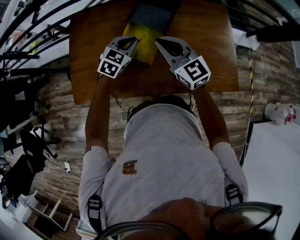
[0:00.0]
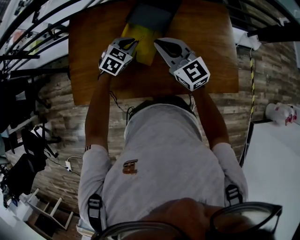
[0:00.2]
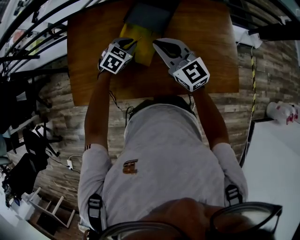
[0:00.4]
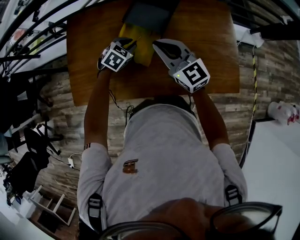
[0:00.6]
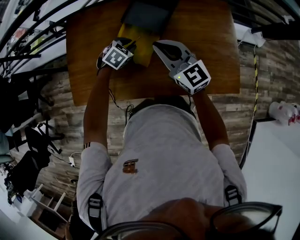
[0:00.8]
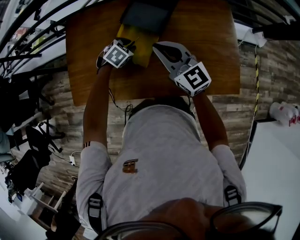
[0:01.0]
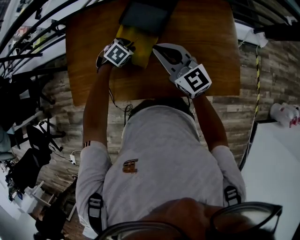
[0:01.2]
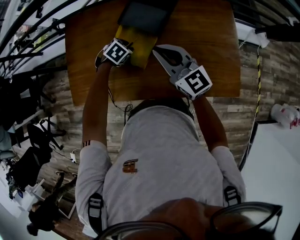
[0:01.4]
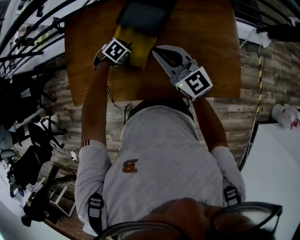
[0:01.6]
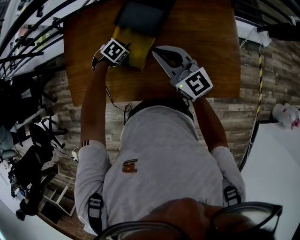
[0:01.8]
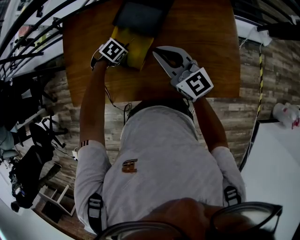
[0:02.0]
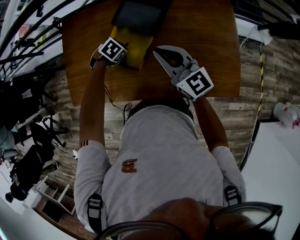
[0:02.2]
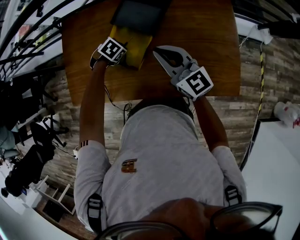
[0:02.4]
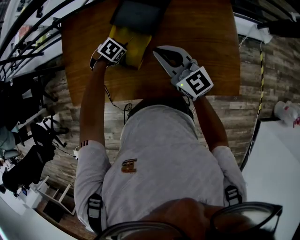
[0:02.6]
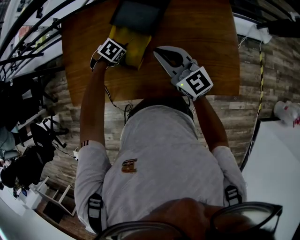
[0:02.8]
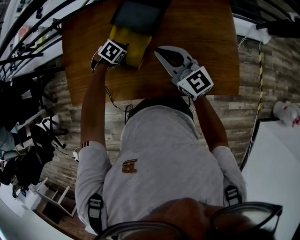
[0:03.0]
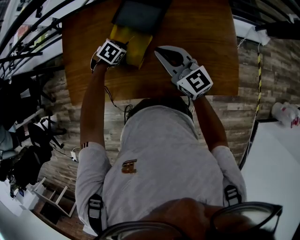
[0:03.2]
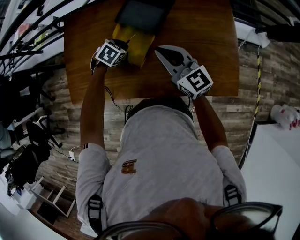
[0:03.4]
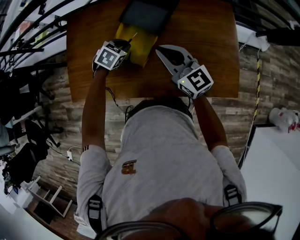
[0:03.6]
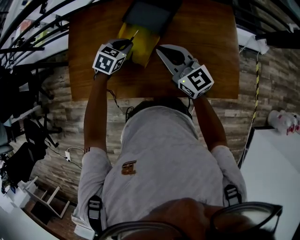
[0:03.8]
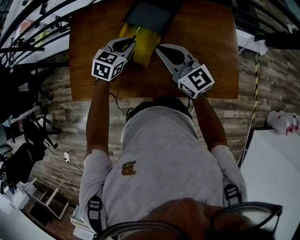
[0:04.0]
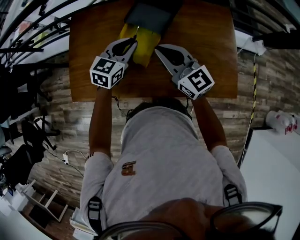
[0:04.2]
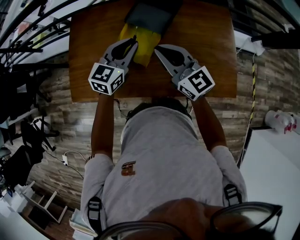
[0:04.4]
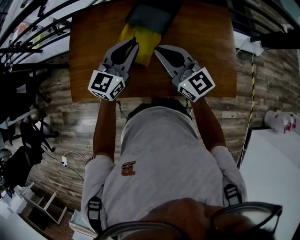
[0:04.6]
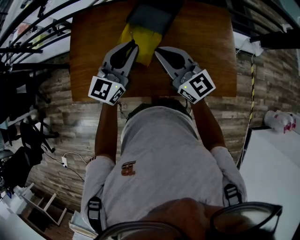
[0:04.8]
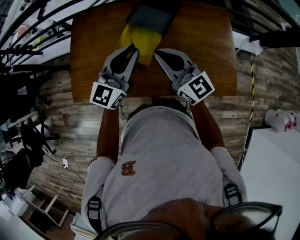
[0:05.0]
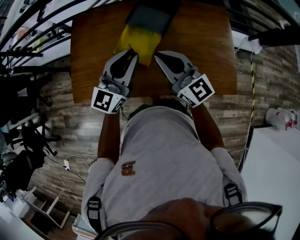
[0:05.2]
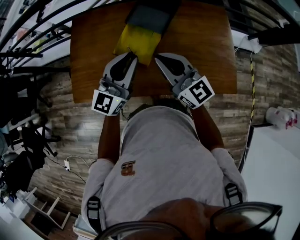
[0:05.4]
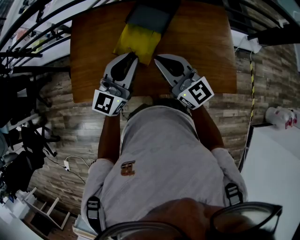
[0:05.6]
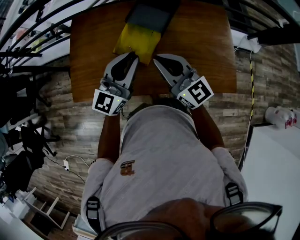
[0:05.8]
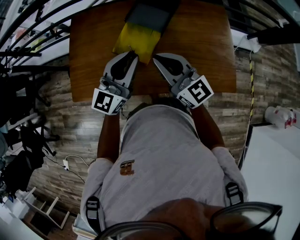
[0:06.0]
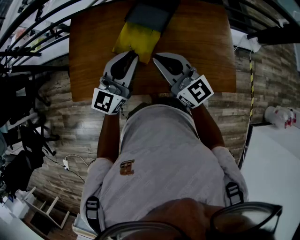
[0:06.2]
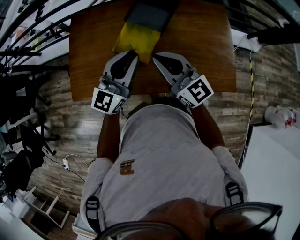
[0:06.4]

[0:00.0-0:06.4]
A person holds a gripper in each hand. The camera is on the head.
0:00.0 to 0:01.6: The right gripper ends up about 10 cm from where it was; the left gripper travels downward by roughly 15 cm, tilts its fingers about 40 degrees downward, and opens its fingers.
0:01.6 to 0:03.2: The grippers move only a little.
0:03.2 to 0:04.8: The right gripper heads to the left, upward and backward, covering some 15 cm; the left gripper shifts some 30 cm upward, and angles its fingers upward, by approximately 70 degrees.
0:04.8 to 0:06.4: The left gripper moves backward, some 5 cm.

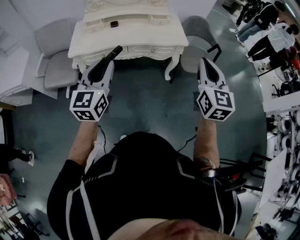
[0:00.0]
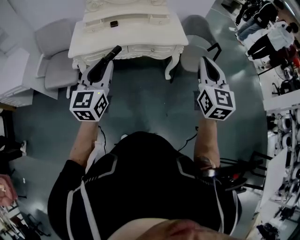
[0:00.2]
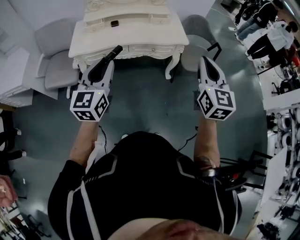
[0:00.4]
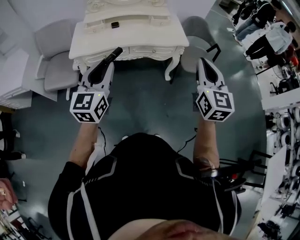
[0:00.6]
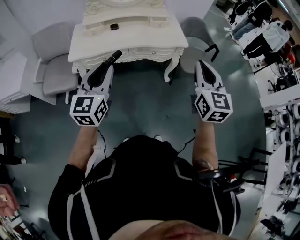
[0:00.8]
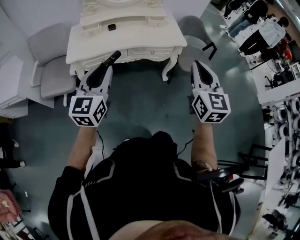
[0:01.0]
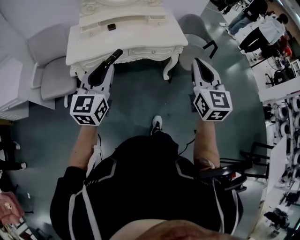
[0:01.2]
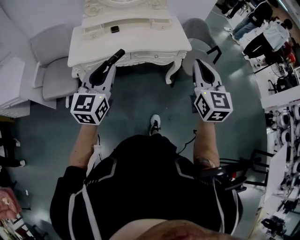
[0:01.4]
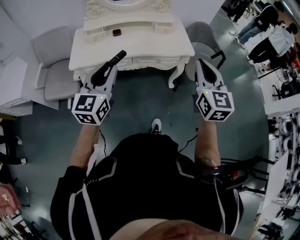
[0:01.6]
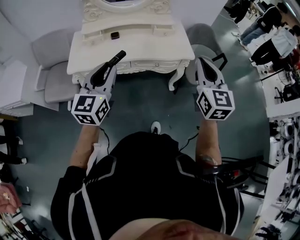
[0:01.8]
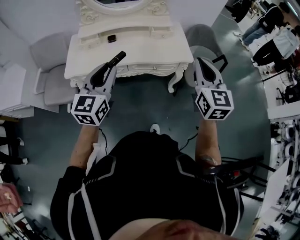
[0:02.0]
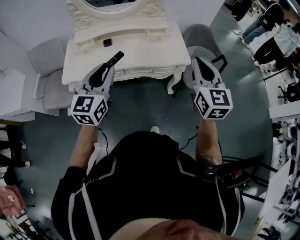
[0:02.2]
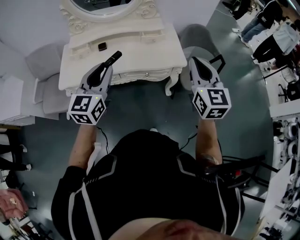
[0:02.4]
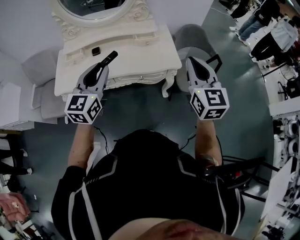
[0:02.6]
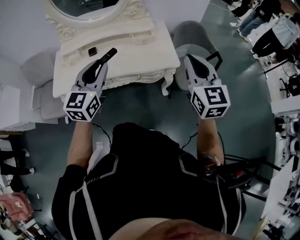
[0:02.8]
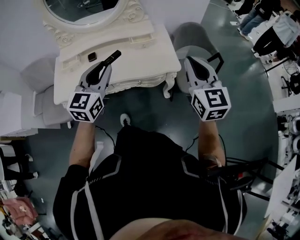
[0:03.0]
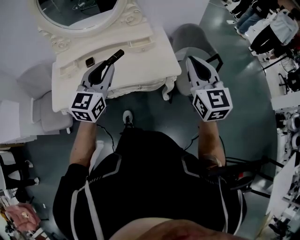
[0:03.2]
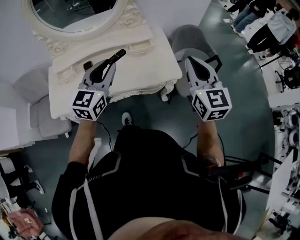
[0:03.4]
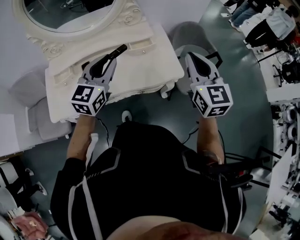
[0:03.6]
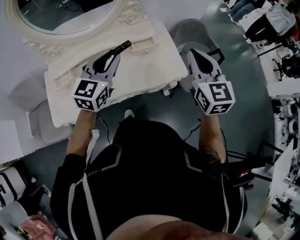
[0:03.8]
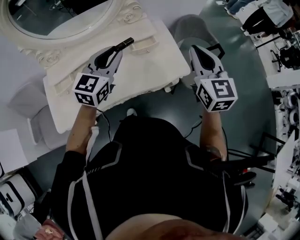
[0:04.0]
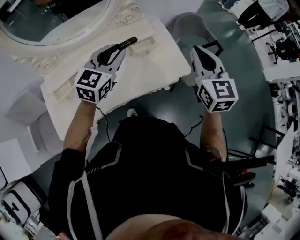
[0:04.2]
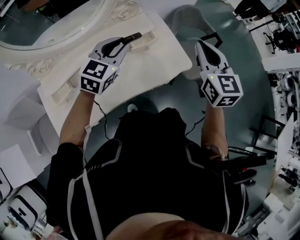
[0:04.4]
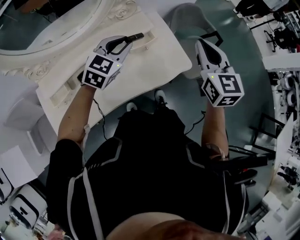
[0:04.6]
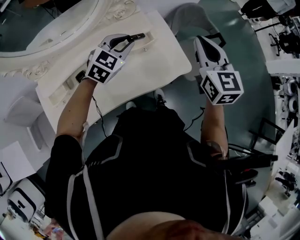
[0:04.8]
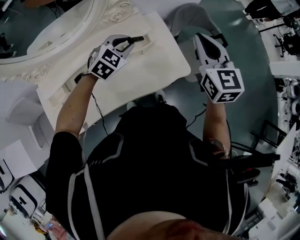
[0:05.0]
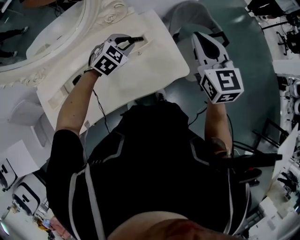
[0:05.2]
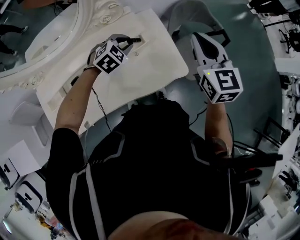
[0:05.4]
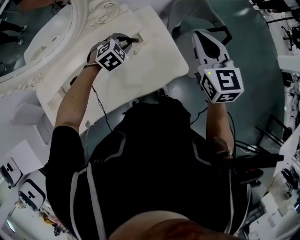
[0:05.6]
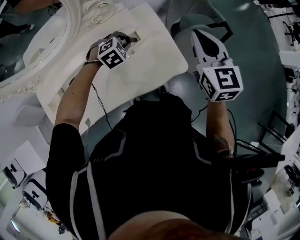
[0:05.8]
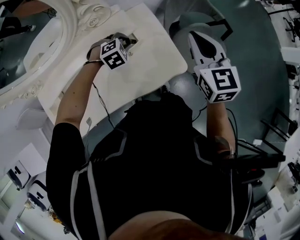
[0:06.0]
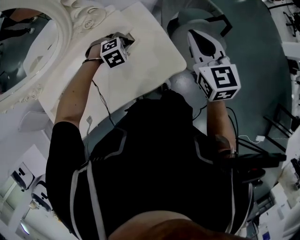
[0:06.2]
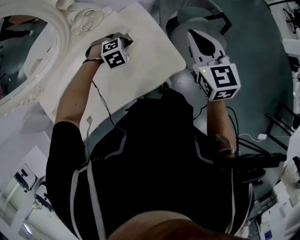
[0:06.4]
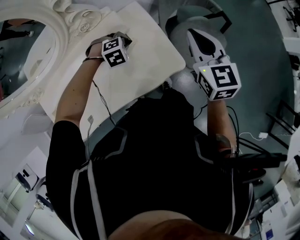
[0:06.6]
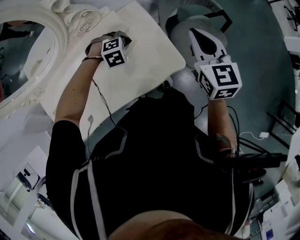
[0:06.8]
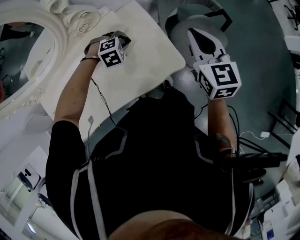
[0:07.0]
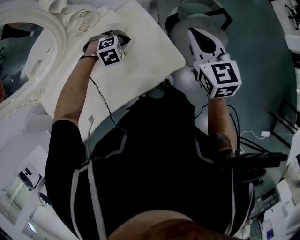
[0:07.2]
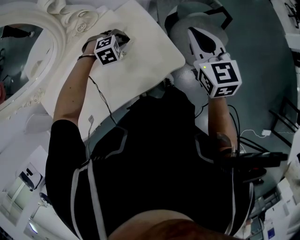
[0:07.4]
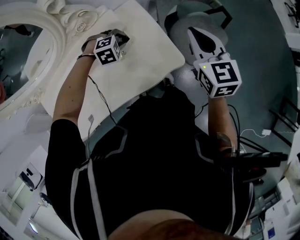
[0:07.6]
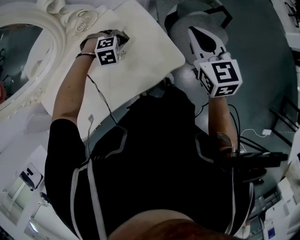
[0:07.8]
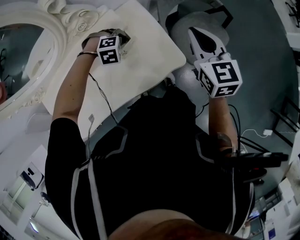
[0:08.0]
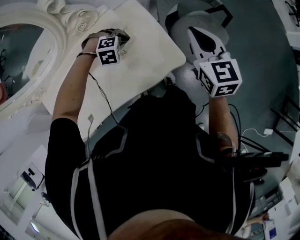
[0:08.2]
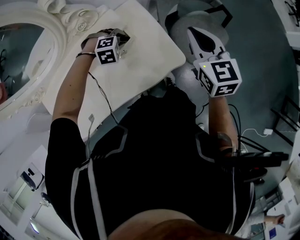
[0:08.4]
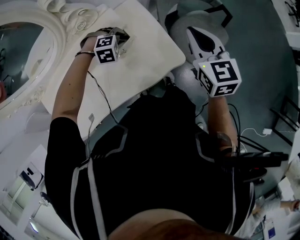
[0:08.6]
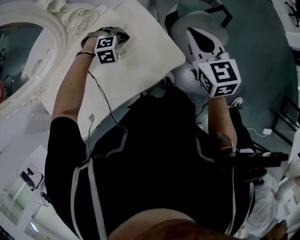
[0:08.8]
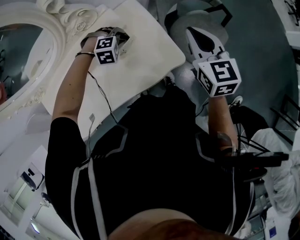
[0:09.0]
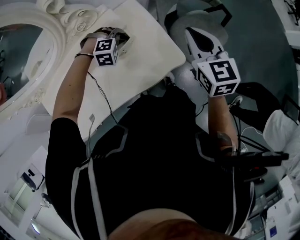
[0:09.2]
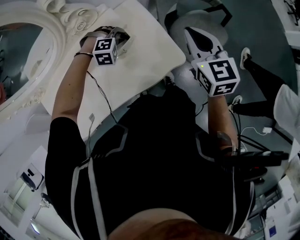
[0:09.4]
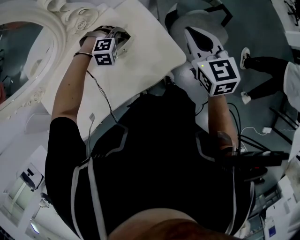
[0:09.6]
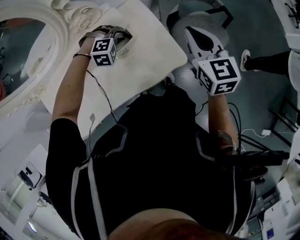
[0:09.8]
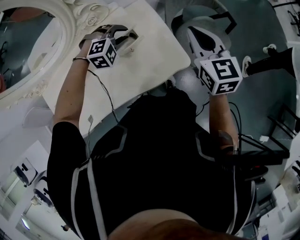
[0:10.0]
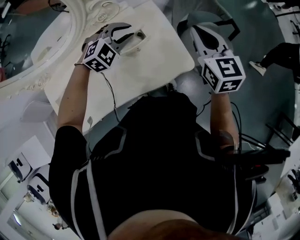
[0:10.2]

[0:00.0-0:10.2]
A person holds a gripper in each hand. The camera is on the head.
0:00.0 to 0:01.4: Both grippers travel together to the left, approximately 5 cm.
0:01.4 to 0:03.0: The grippers both shift forward and to the right by some 30 cm.
0:03.0 to 0:04.4: The left gripper goes some 25 cm forward, and rotates approximately 30 degrees. Meanwhile the right gripper moves forward and to the left, approximately 20 cm, and rotates approximately 20 degrees.
0:04.4 to 0:05.8: The right gripper shifts approximately 15 cm forward, downward and to the right. The left gripper heads downward and forward, covering some 25 cm, and points its fingers about 40 degrees further downward.
0:05.8 to 0:07.2: The left gripper turns by roughly 20 degrees; the right gripper ends up some 5 cm from where it was.
0:07.2 to 0:08.8: The grippers stay close to where they were, moving slightly.
0:08.8 to 0:10.2: The left gripper is displaced upward by roughly 15 cm, and tilts its fingers about 30 degrees upward. The right gripper moves about 5 cm.

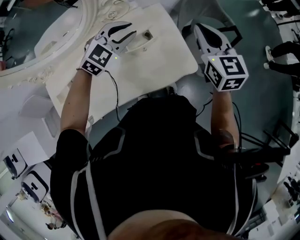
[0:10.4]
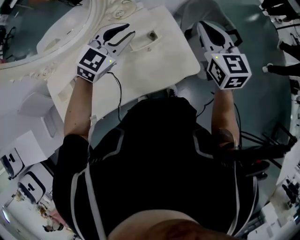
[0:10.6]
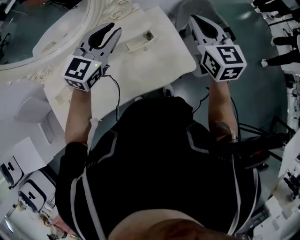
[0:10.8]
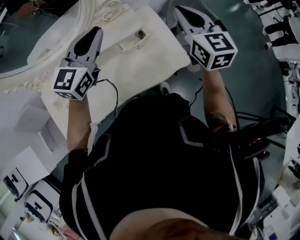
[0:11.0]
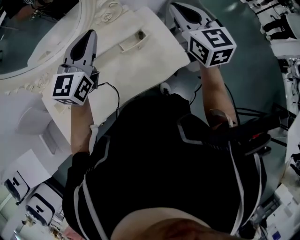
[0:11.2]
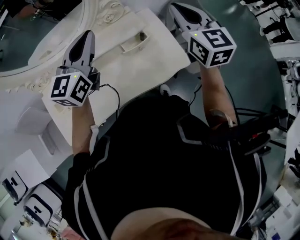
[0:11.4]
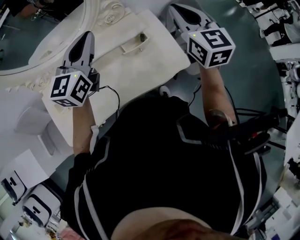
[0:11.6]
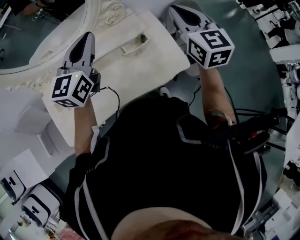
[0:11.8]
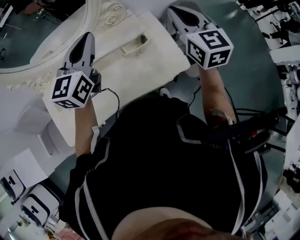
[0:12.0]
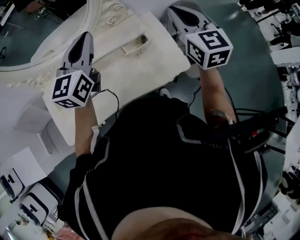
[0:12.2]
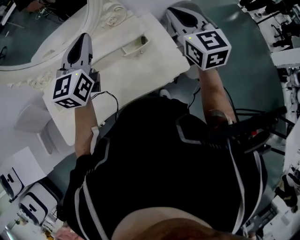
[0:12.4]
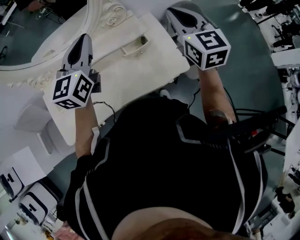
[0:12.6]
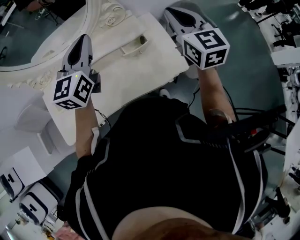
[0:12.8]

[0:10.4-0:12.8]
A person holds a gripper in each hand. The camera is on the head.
0:10.4 to 0:11.6: The left gripper goes approximately 20 cm upward, to the left and backward, changes its angle by about 50 degrees, and closes. Meanwhile the right gripper shifts about 10 cm upward and to the left.
0:11.6 to 0:12.8: There are only small adjustments of the grippers.

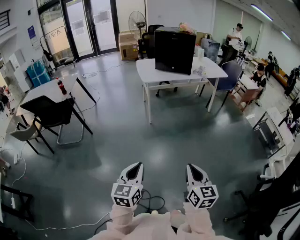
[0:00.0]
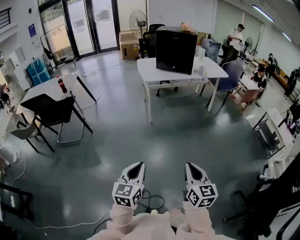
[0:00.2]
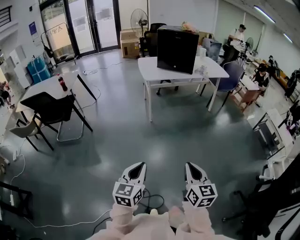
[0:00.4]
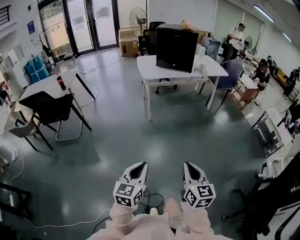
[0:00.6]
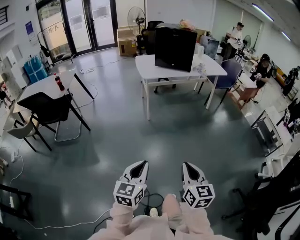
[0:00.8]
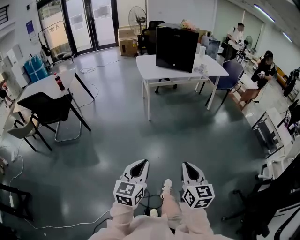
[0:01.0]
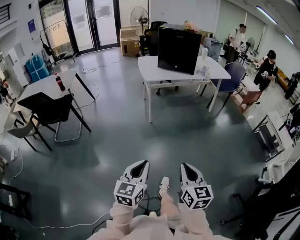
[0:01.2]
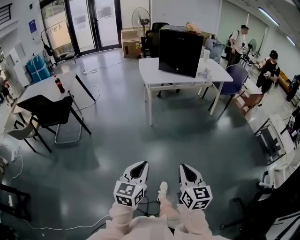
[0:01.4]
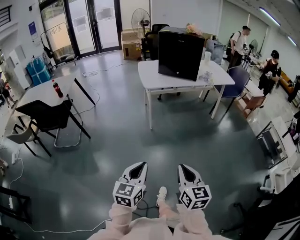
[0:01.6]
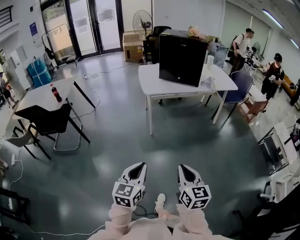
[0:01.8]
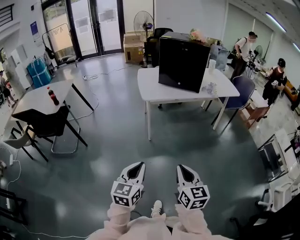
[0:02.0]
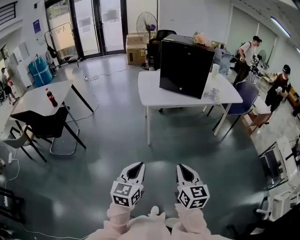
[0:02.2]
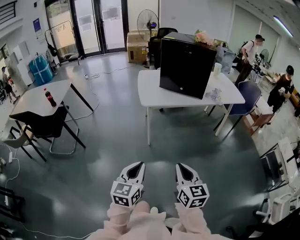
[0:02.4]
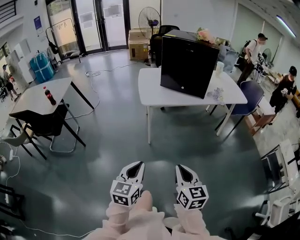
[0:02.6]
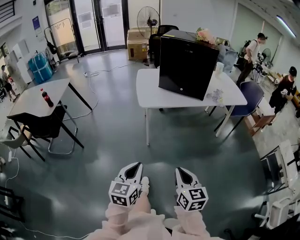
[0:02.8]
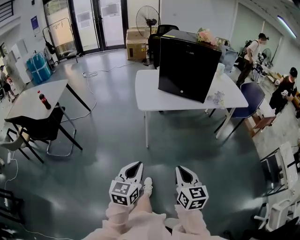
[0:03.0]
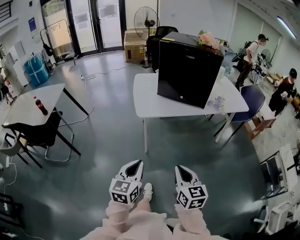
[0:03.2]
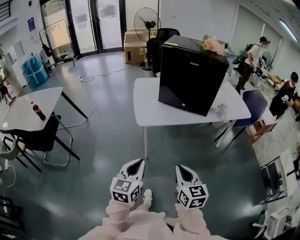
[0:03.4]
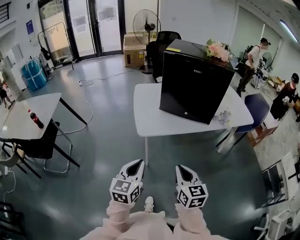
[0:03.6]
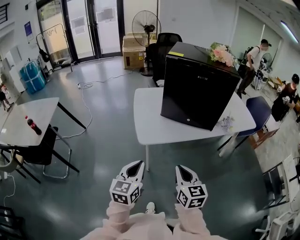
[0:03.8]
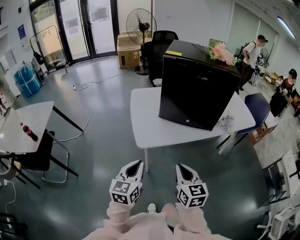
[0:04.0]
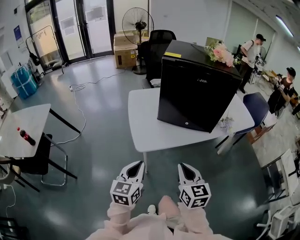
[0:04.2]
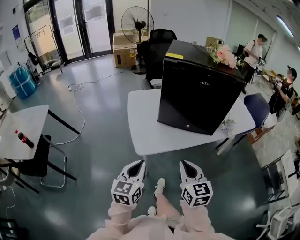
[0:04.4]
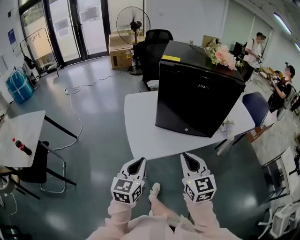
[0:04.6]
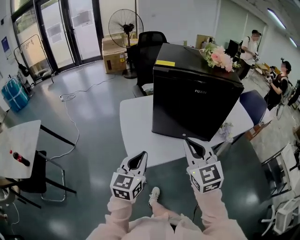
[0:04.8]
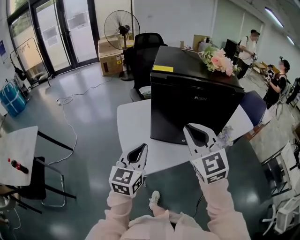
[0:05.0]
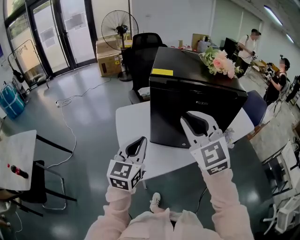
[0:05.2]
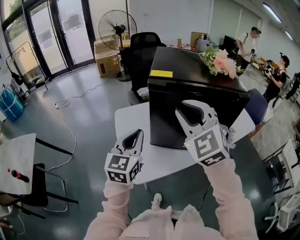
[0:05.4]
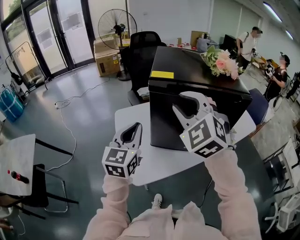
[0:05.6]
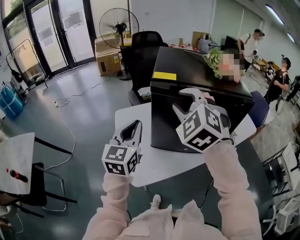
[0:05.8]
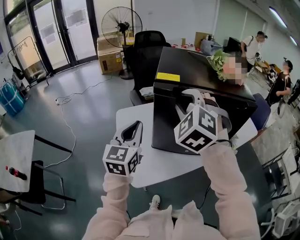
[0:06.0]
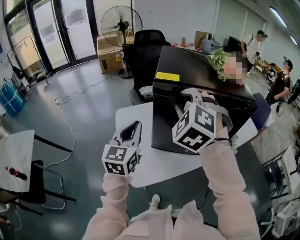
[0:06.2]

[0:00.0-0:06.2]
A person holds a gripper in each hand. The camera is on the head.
0:00.0 to 0:01.6: Both grippers move forward, some 15 cm.
0:01.6 to 0:03.2: The grippers both shift forward by approximately 40 cm.
0:03.2 to 0:04.6: Both grippers move forward, about 35 cm.
0:04.6 to 0:06.2: The two grippers go about 30 cm forward and upward. The right gripper rolls counterclockwise, seen from behind, by about 50 degrees, and opens its fingers.
